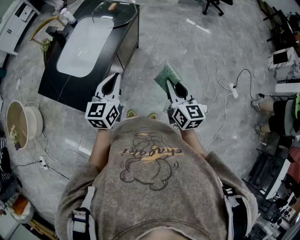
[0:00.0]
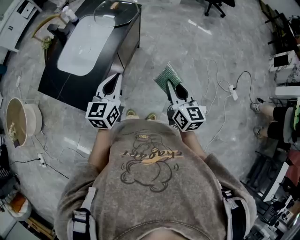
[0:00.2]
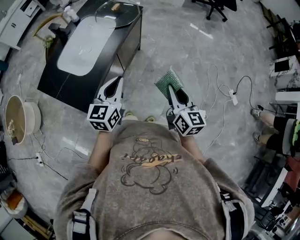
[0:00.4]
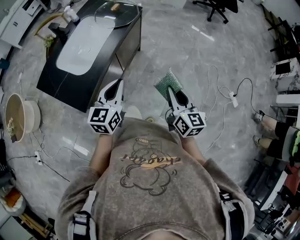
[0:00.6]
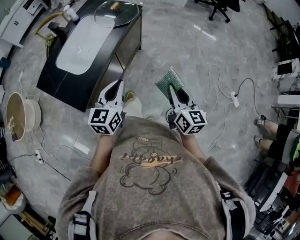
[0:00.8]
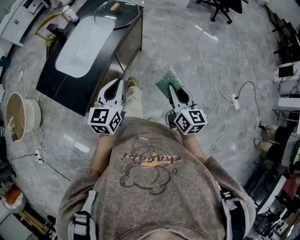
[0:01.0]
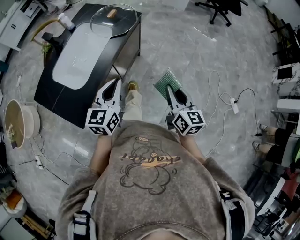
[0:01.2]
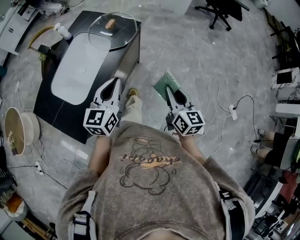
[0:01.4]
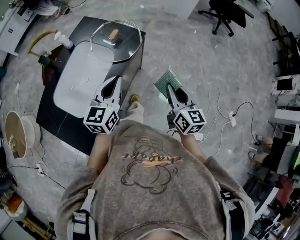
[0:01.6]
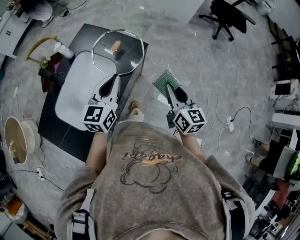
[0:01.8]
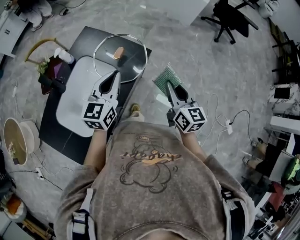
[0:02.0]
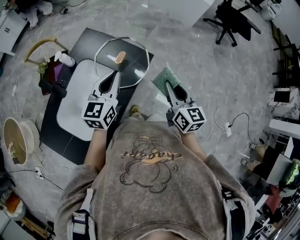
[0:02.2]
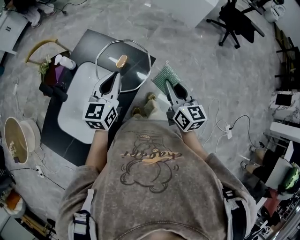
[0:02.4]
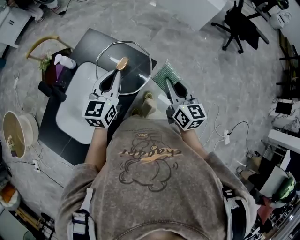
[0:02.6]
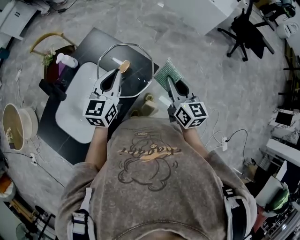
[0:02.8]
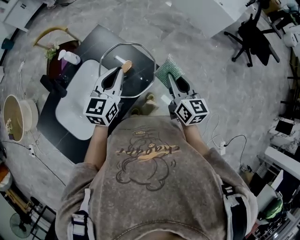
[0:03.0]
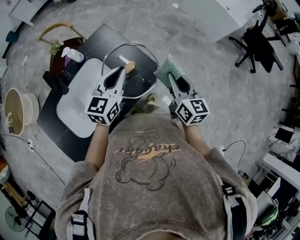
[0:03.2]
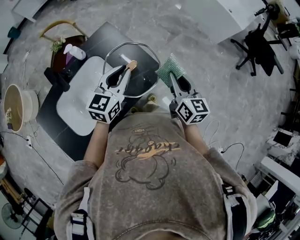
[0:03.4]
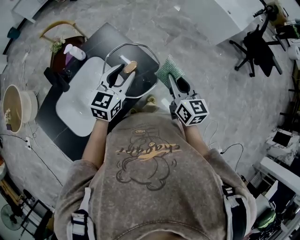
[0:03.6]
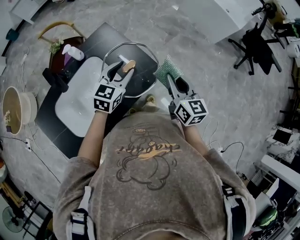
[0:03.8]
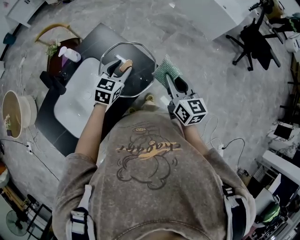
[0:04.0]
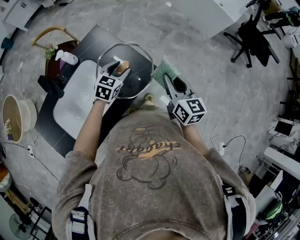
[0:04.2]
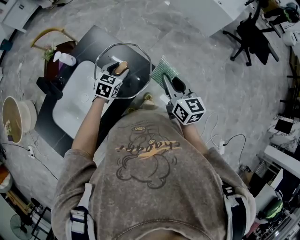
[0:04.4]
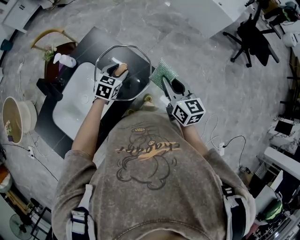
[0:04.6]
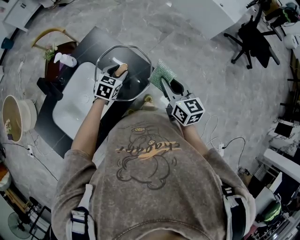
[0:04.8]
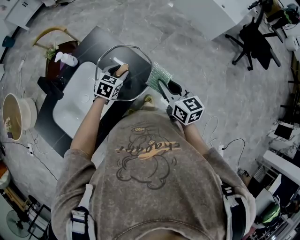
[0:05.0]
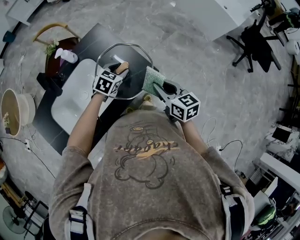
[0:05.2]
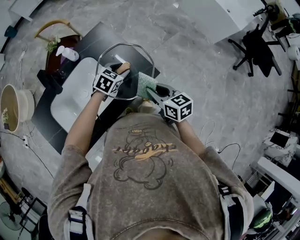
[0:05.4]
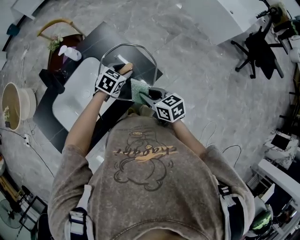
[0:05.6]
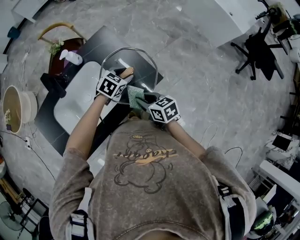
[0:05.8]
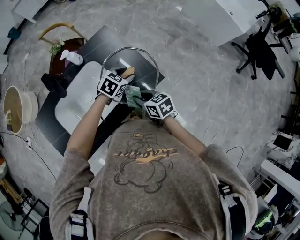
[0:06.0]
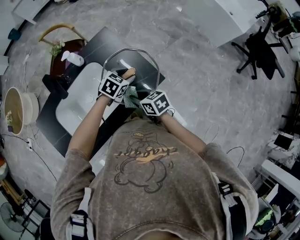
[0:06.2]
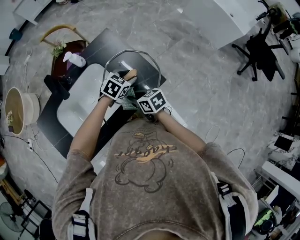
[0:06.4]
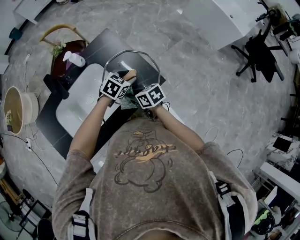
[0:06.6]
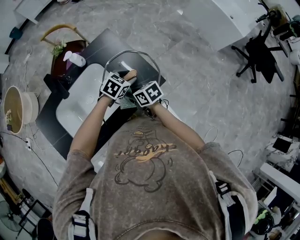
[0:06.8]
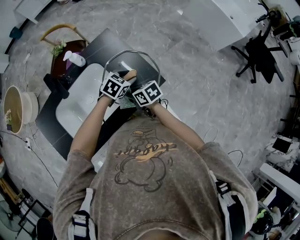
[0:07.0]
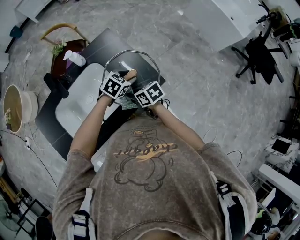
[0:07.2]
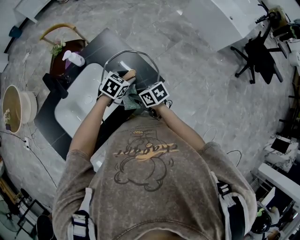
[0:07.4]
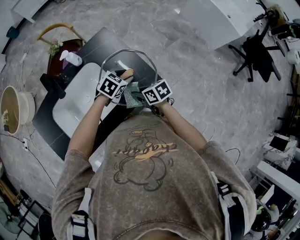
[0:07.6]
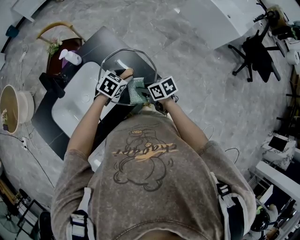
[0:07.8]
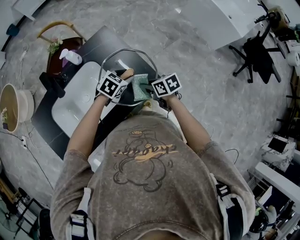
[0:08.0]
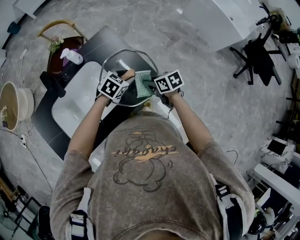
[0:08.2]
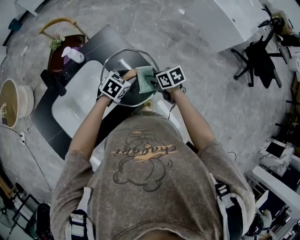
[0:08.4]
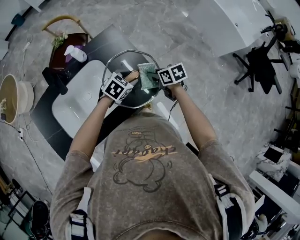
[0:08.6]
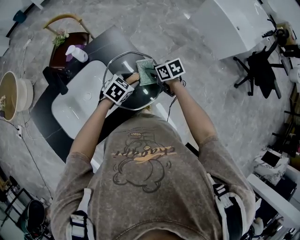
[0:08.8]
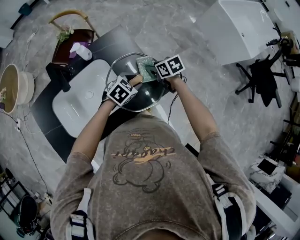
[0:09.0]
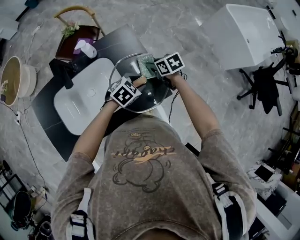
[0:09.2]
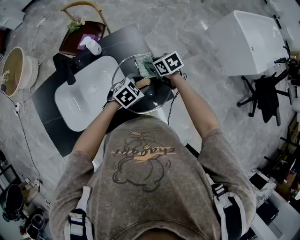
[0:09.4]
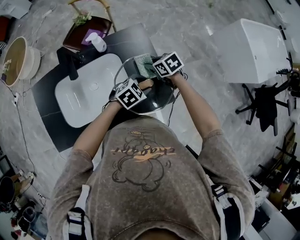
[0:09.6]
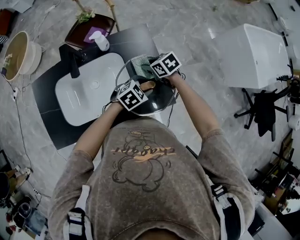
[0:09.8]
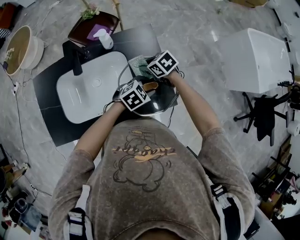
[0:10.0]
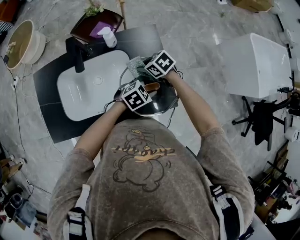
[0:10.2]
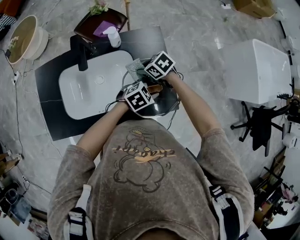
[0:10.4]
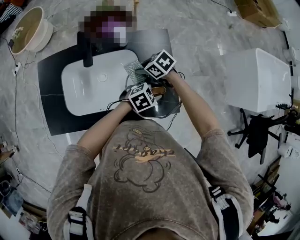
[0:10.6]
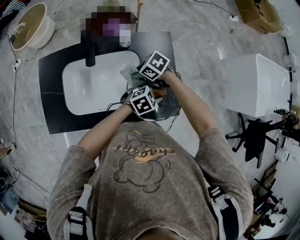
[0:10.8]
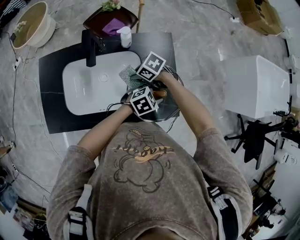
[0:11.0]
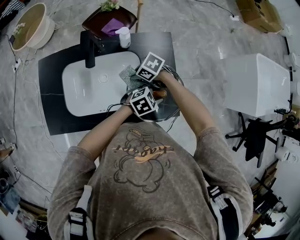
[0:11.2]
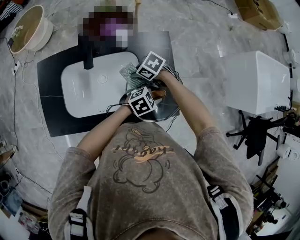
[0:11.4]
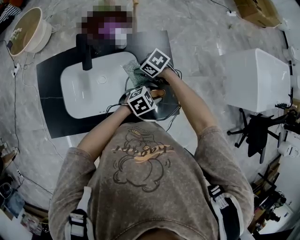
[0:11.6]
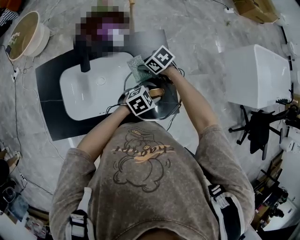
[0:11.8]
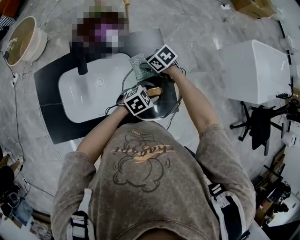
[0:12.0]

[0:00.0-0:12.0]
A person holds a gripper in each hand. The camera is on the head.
0:00.0 to 0:01.6: The two grippers go some 25 cm forward.
0:01.6 to 0:03.0: Both grippers travel together forward, roughly 30 cm.
0:03.0 to 0:04.4: The left gripper shifts about 15 cm downward, turns by roughly 30 degrees, and opens up.
0:04.4 to 0:06.0: The right gripper moves to the left and downward, some 20 cm, and changes its angle by about 40 degrees.
0:07.6 to 0:09.0: The right gripper moves approximately 15 cm.
0:09.0 to 0:10.4: The right gripper shifts by about 15 cm, and turns by about 40 degrees.

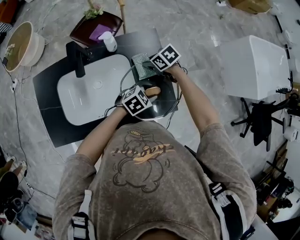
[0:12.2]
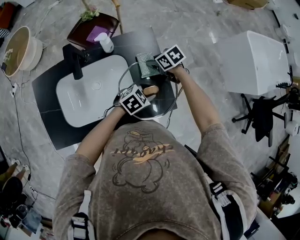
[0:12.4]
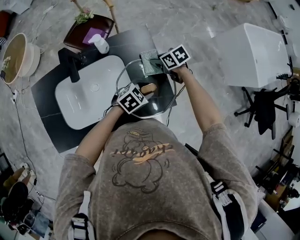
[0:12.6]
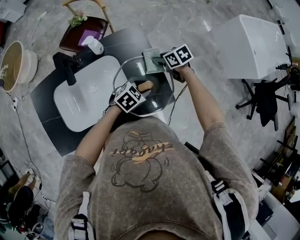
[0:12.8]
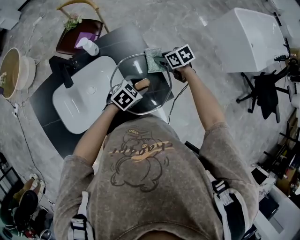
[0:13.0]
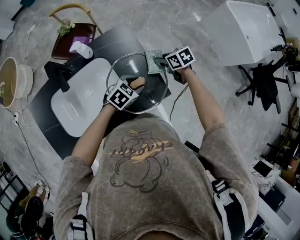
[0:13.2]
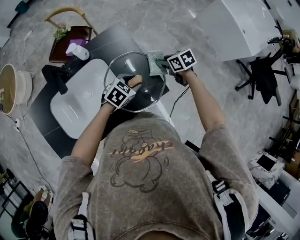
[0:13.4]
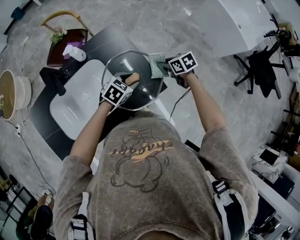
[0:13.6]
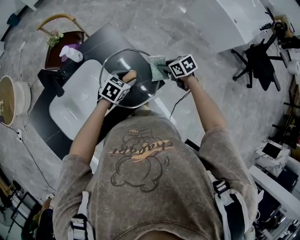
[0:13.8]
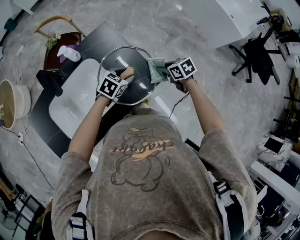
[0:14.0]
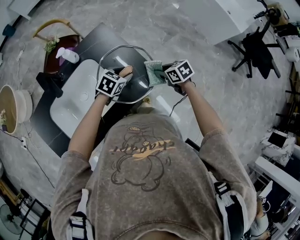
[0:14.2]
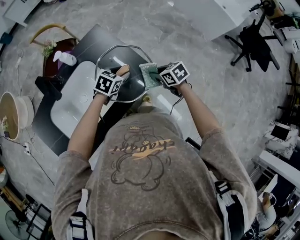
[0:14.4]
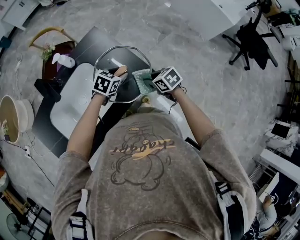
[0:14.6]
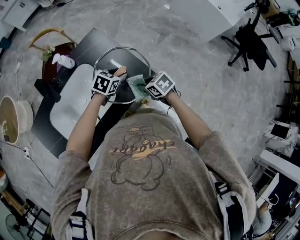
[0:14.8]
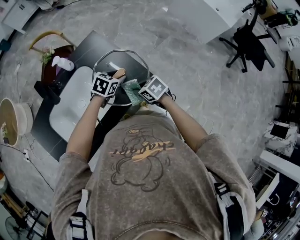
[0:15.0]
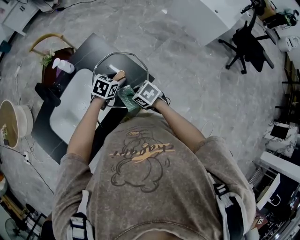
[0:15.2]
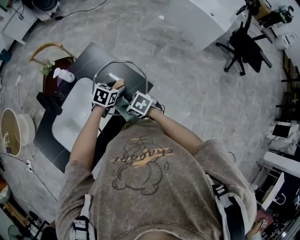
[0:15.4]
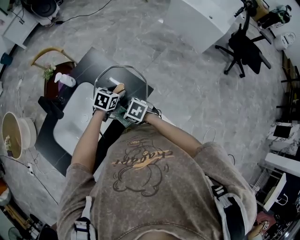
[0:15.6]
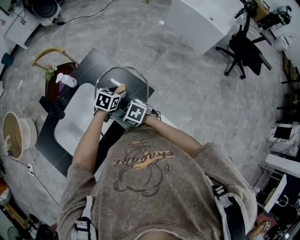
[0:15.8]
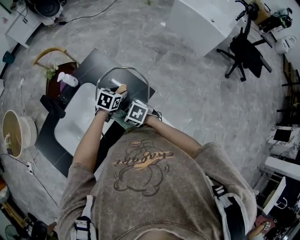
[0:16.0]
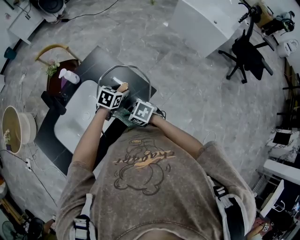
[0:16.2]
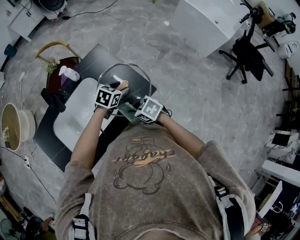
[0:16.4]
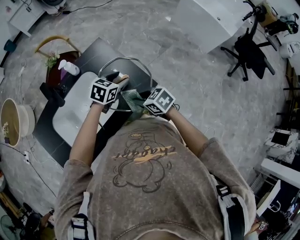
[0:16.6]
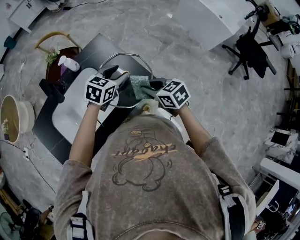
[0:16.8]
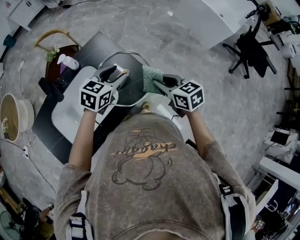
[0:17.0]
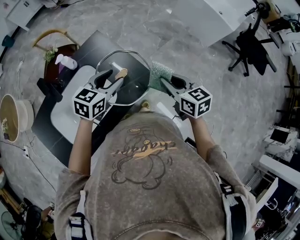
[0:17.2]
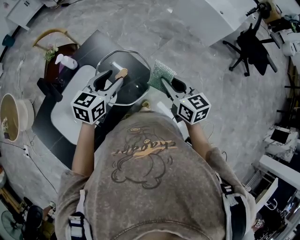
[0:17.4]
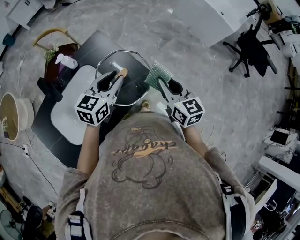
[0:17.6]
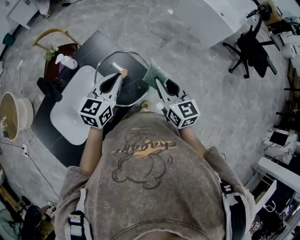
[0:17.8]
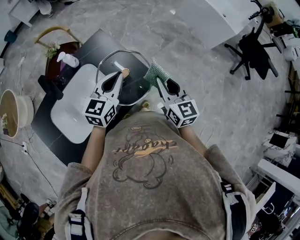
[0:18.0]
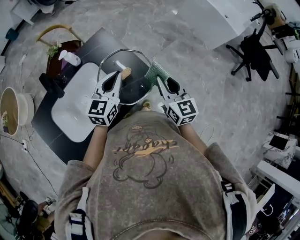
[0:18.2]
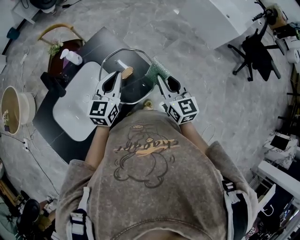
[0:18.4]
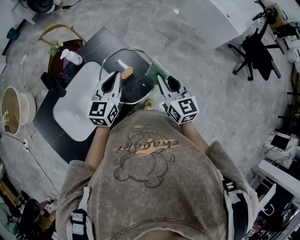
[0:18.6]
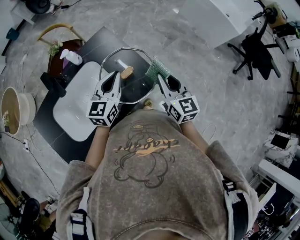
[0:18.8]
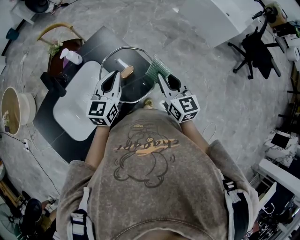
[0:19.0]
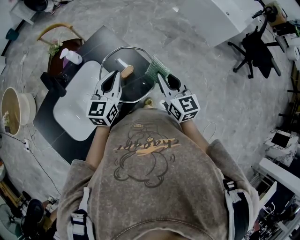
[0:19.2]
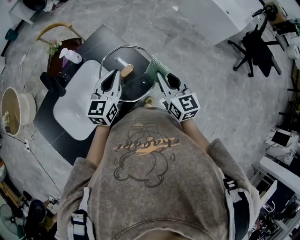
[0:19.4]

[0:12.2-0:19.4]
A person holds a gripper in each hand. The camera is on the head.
0:12.2 to 0:13.6: The right gripper moves some 20 cm, and rotates about 30 degrees.
0:13.6 to 0:15.0: The right gripper ends up some 20 cm from where it was.
0:15.0 to 0:16.6: Both grippers move upward, approximately 5 cm.
0:16.6 to 0:18.0: The left gripper travels upward by some 10 cm, rotates about 30 degrees, and closes its fingers. The right gripper is displaced upward, to the right and forward by approximately 15 cm, and angles its fingers upward, by some 30 degrees.
0:18.0 to 0:19.4: The grippers stay close to where they were, moving slightly.

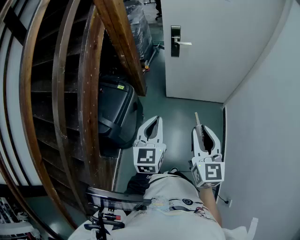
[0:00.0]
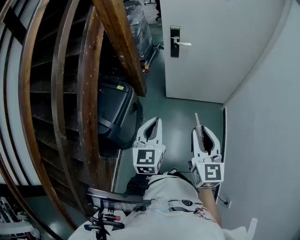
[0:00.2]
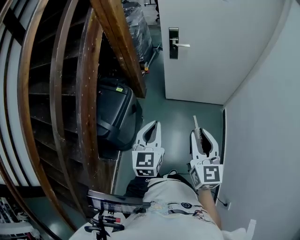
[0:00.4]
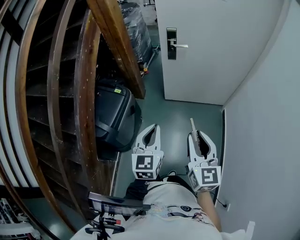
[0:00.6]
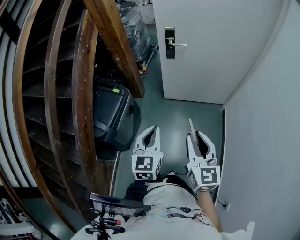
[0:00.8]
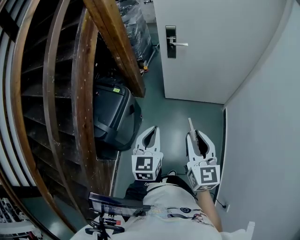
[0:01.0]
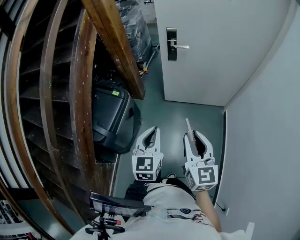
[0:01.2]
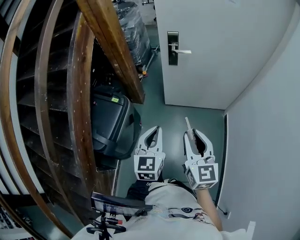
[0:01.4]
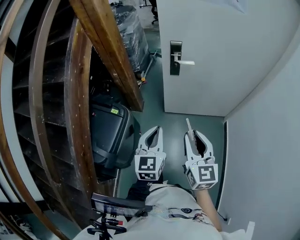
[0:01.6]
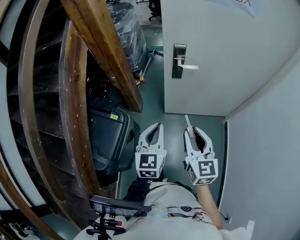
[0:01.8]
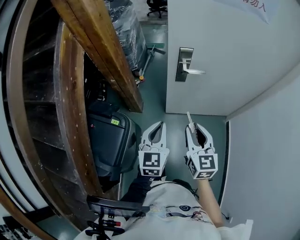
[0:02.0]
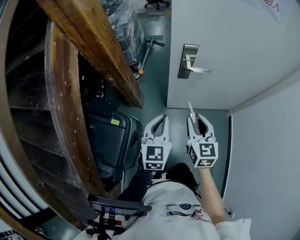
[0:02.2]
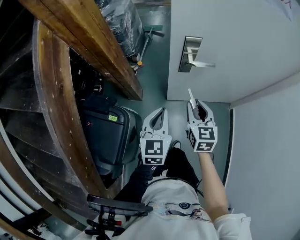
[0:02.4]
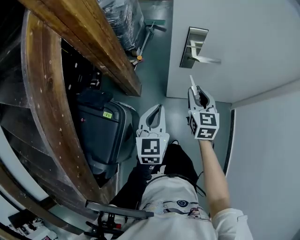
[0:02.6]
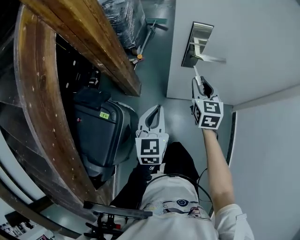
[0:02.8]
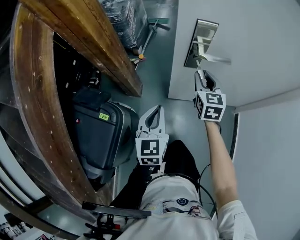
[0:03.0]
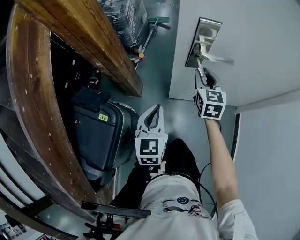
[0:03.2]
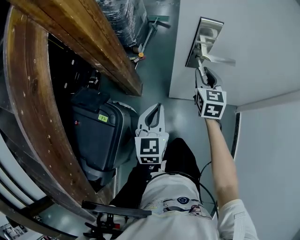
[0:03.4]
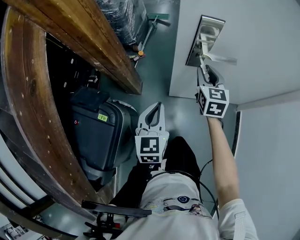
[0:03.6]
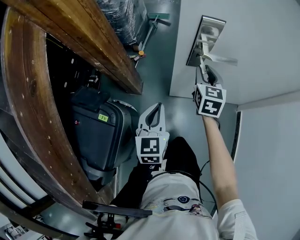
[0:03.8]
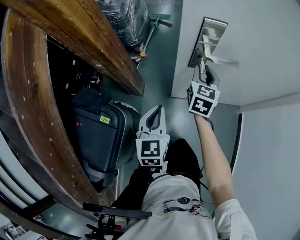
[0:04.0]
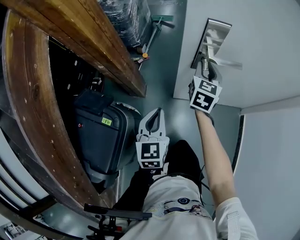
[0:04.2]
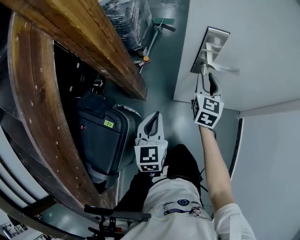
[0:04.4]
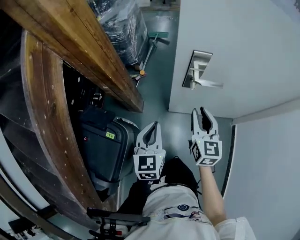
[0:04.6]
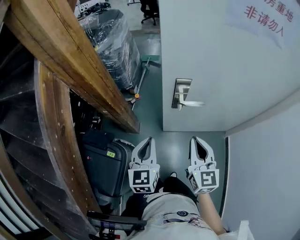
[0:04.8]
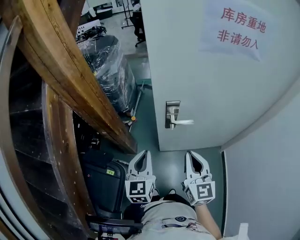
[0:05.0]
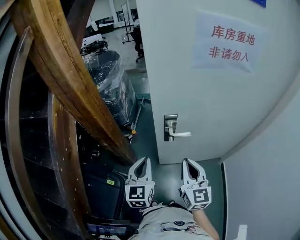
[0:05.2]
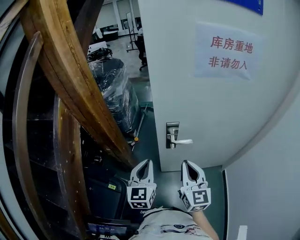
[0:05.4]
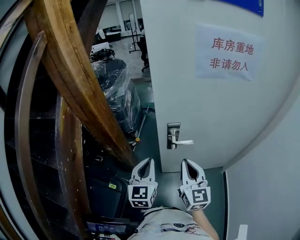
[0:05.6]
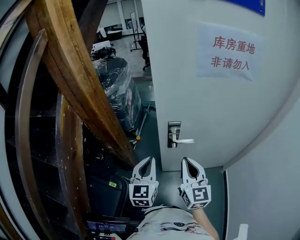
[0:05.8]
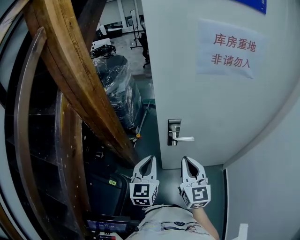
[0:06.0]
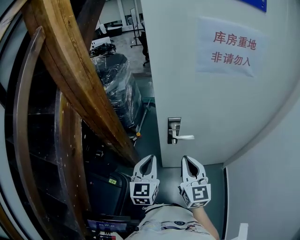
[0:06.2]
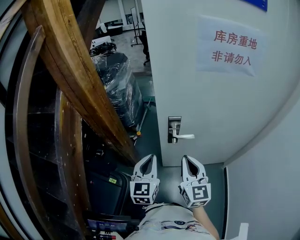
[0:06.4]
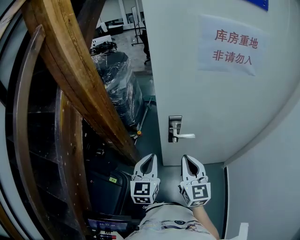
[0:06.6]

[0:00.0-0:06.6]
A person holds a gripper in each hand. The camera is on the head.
0:00.0 to 0:01.6: The grippers both shift forward by some 20 cm.
0:01.6 to 0:03.2: The right gripper is displaced forward and downward by roughly 50 cm. Meanwhile the left gripper travels forward and downward by about 35 cm.
0:03.2 to 0:05.0: The right gripper moves upward and backward, some 30 cm, and closes up, while the left gripper shifts roughly 20 cm upward.
0:05.0 to 0:06.6: The grippers move only a little.
